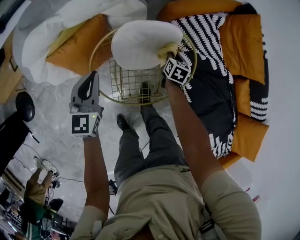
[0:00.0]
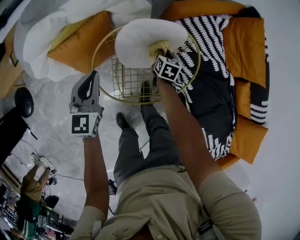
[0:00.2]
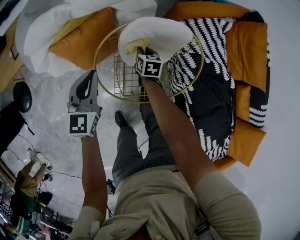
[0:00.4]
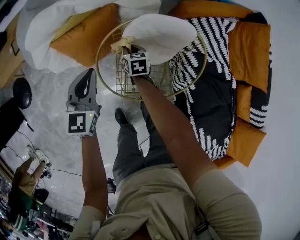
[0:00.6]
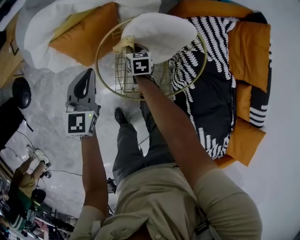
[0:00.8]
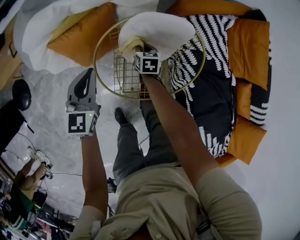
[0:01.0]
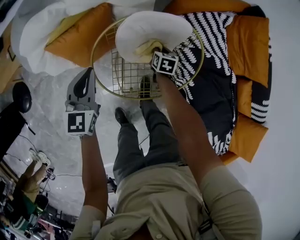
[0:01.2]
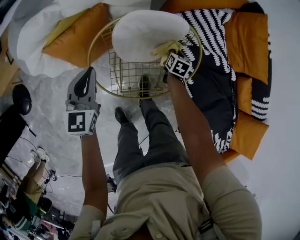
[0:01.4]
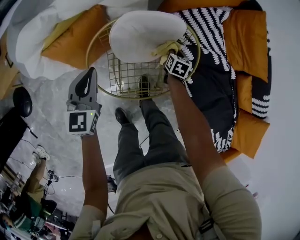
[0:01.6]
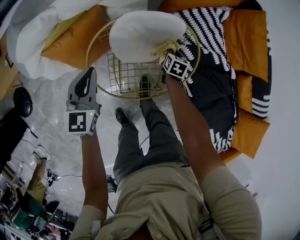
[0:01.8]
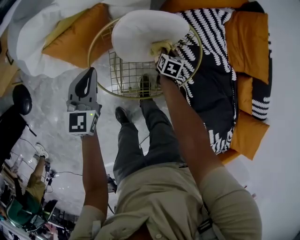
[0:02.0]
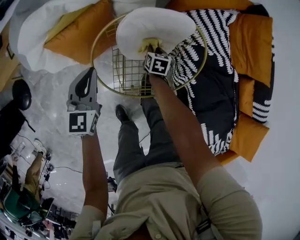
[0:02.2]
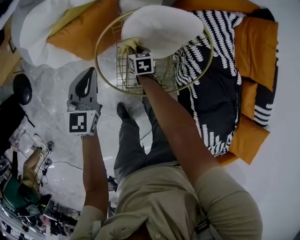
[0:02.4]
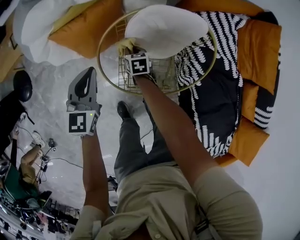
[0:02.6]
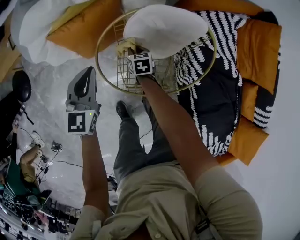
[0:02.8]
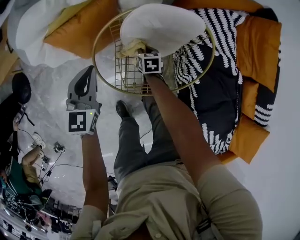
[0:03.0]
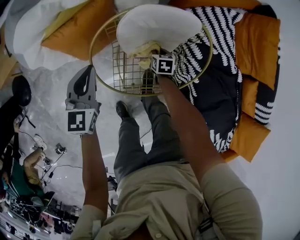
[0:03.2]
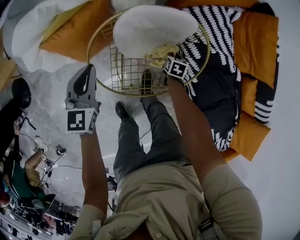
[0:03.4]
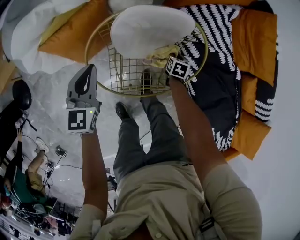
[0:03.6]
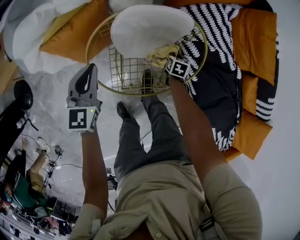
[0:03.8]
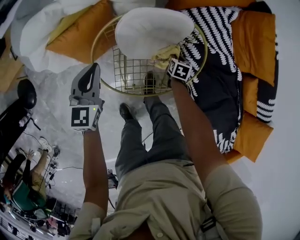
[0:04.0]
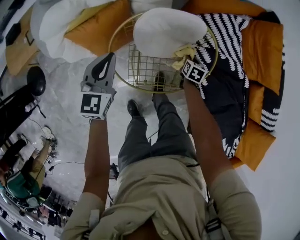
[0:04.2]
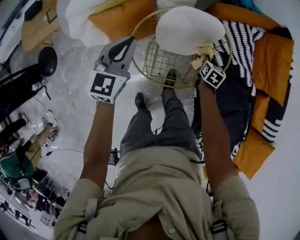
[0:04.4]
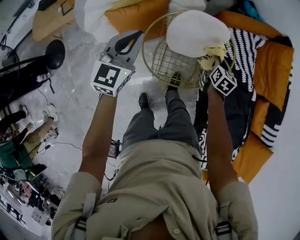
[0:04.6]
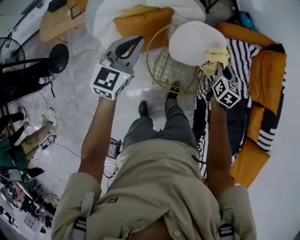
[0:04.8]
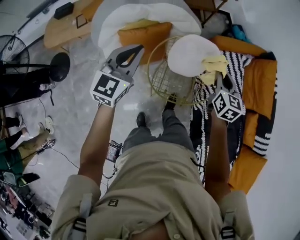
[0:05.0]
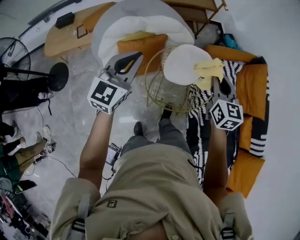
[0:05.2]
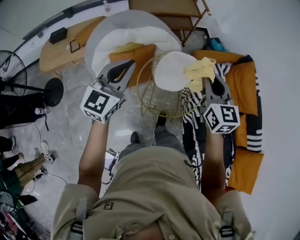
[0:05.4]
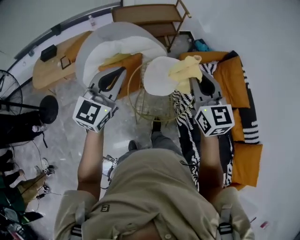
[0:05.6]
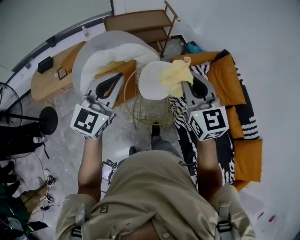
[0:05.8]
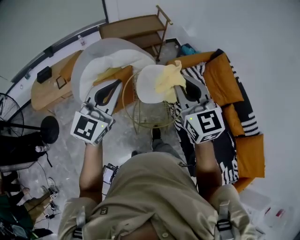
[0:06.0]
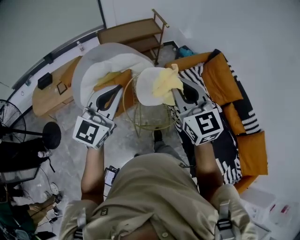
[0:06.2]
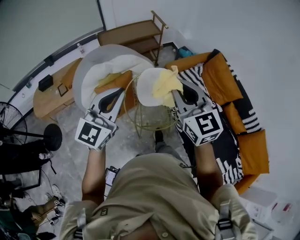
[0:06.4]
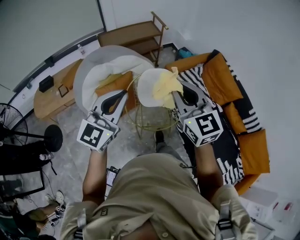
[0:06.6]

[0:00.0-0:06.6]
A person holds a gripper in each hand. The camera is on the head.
0:00.0 to 0:01.6: The right gripper travels to the left and back again, some 25 cm each way.
0:01.6 to 0:03.2: The right gripper rotates some 20 degrees.
0:03.2 to 0:05.0: The right gripper shifts about 50 cm upward, and tilts its fingers some 40 degrees upward, while the left gripper goes roughly 30 cm upward.
0:05.0 to 0:06.6: The left gripper shifts about 25 cm upward, backward and to the right, and turns by about 20 degrees. The right gripper heads upward and backward, covering roughly 35 cm, and rotates about 30 degrees.

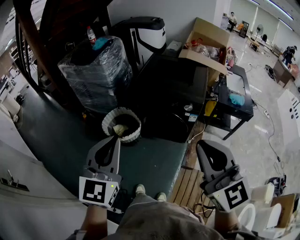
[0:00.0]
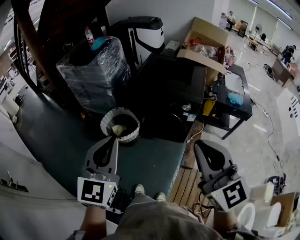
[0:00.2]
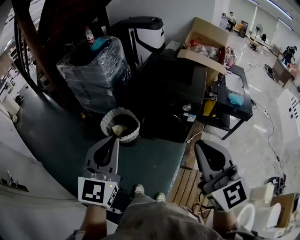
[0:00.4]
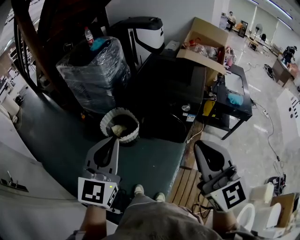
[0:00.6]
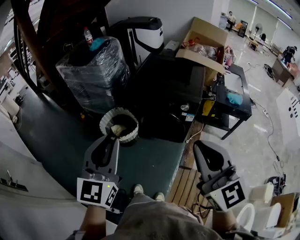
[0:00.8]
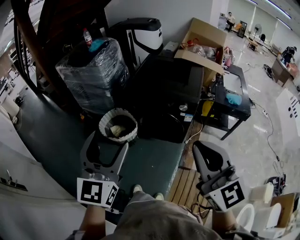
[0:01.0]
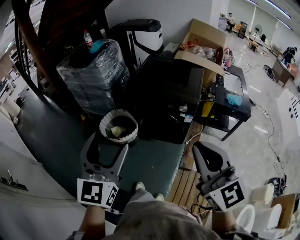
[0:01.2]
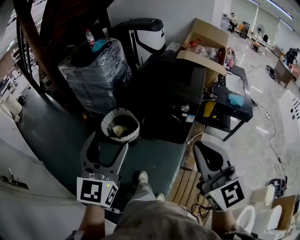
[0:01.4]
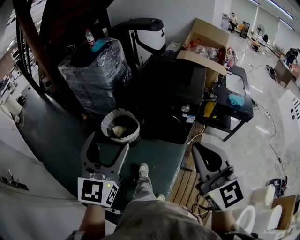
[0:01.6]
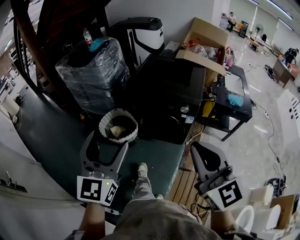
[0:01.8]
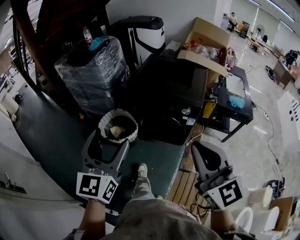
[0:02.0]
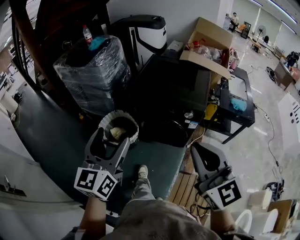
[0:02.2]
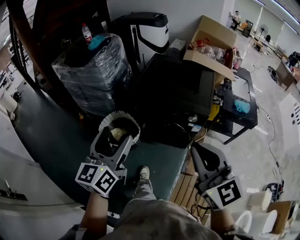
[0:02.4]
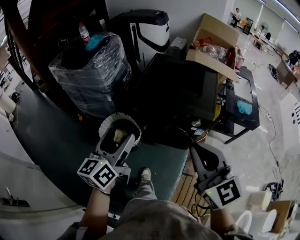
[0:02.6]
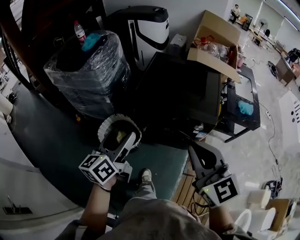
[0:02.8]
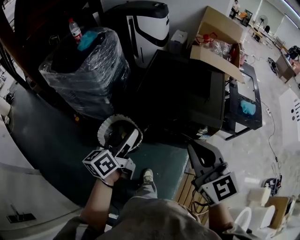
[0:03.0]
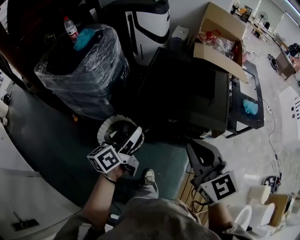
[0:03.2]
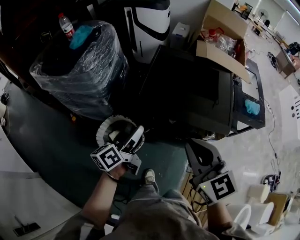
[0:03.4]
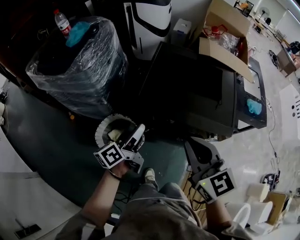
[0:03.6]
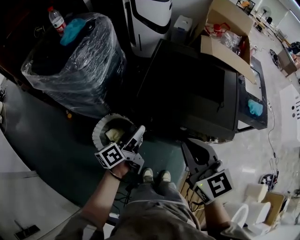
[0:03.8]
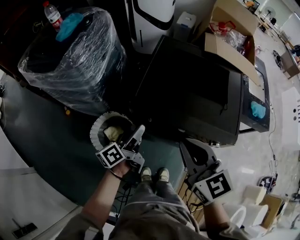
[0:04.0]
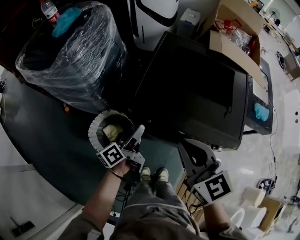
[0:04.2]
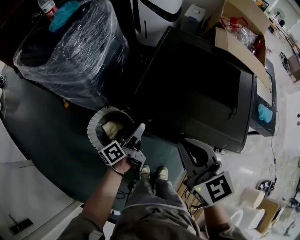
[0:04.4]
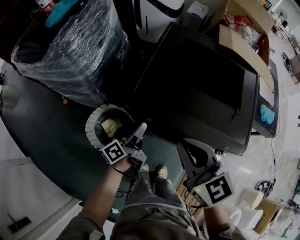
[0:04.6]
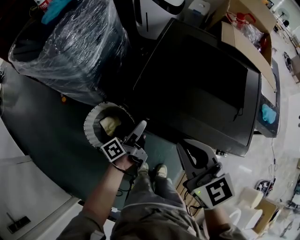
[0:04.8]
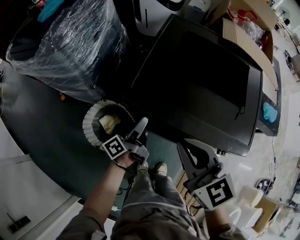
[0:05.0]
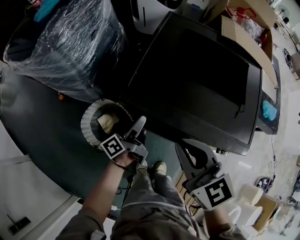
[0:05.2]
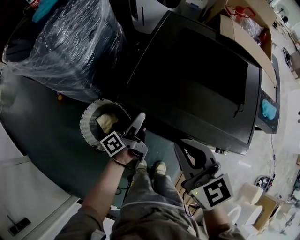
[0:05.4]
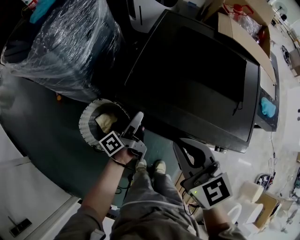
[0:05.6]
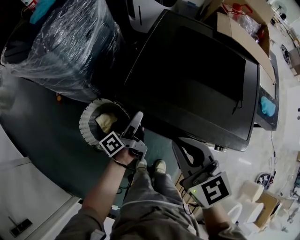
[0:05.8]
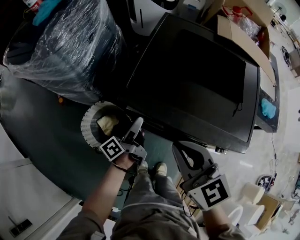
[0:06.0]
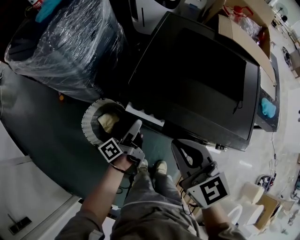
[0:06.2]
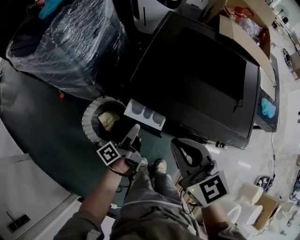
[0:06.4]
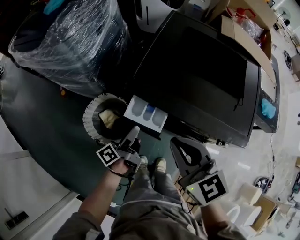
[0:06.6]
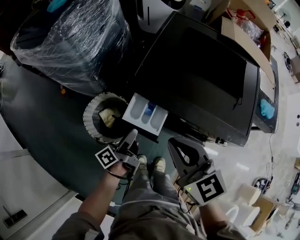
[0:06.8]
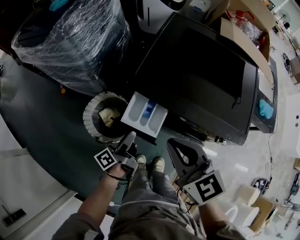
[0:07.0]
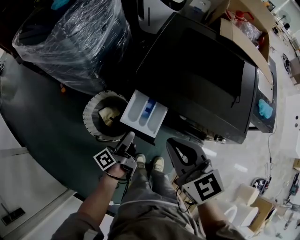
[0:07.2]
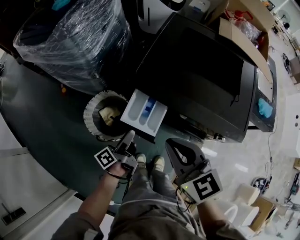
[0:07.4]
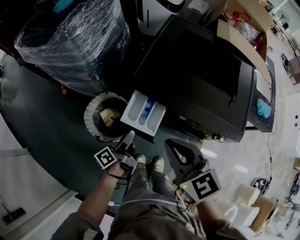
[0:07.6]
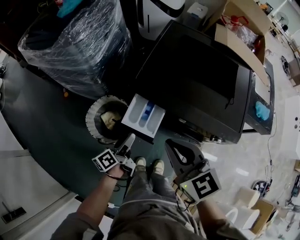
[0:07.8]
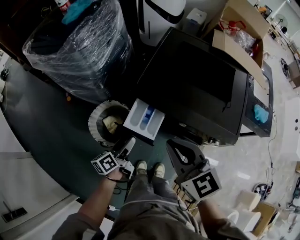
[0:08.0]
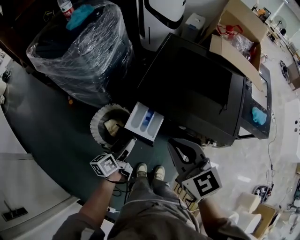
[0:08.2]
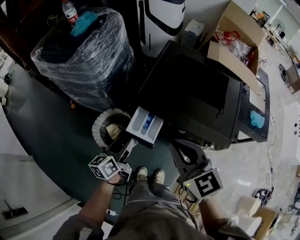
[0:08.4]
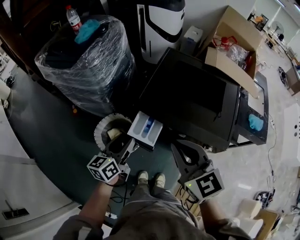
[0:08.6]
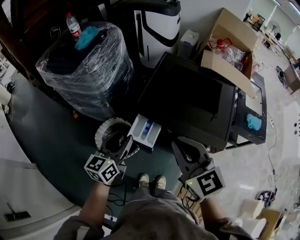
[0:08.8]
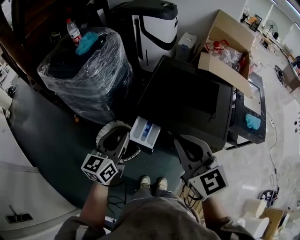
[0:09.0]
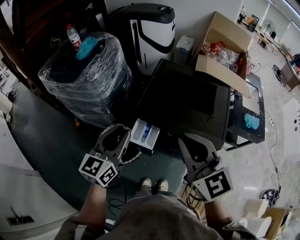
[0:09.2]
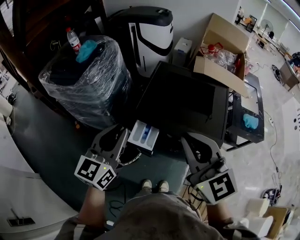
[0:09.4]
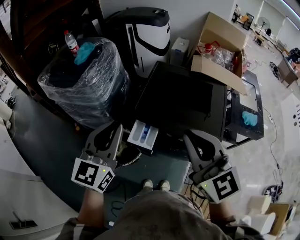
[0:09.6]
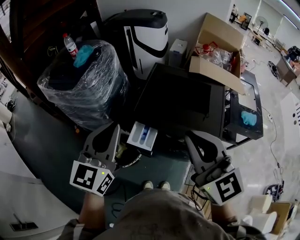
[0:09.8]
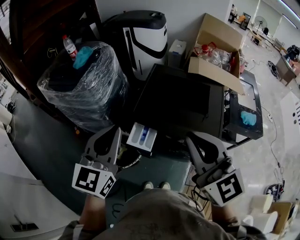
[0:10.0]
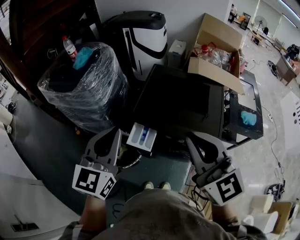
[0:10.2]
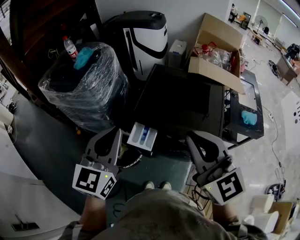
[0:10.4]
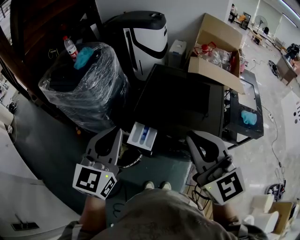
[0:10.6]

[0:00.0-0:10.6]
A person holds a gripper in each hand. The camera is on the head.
0:00.0 to 0:01.6: The left gripper opens.
0:01.6 to 0:03.0: The right gripper is displaced forward by approximately 30 cm; the left gripper moves forward and downward, some 35 cm, and rolls counterclockwise, seen from behind, by approximately 50 degrees.
0:03.0 to 0:04.6: The right gripper moves forward and downward, roughly 25 cm. The left gripper is displaced downward and forward by roughly 35 cm, and turns by approximately 30 degrees.
0:04.6 to 0:06.0: There are only small adjustments of the grippers.
0:06.0 to 0:07.6: The right gripper shifts about 5 cm backward. Meanwhile the left gripper heads backward and to the left, covering about 15 cm.
0:07.6 to 0:09.0: The left gripper shifts about 30 cm upward, rolls clockwise, seen from behind, by approximately 70 degrees, and closes its fingers. The right gripper shifts about 20 cm upward.
0:09.0 to 0:10.6: The two grippers go roughly 10 cm upward. The left gripper swivels some 20 degrees.

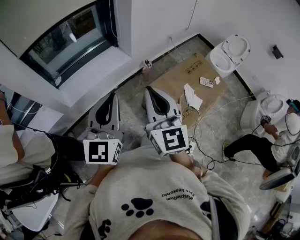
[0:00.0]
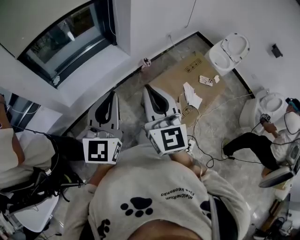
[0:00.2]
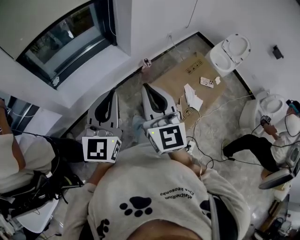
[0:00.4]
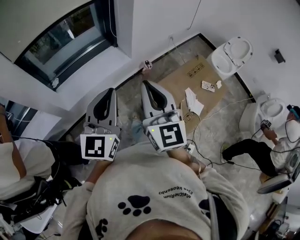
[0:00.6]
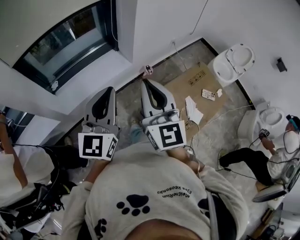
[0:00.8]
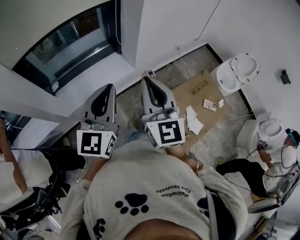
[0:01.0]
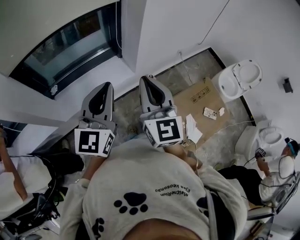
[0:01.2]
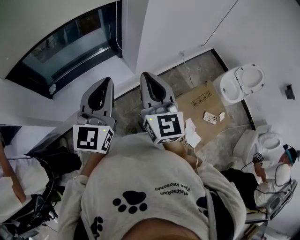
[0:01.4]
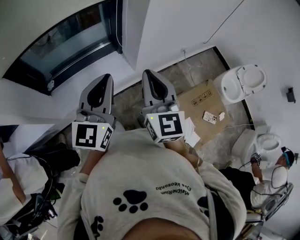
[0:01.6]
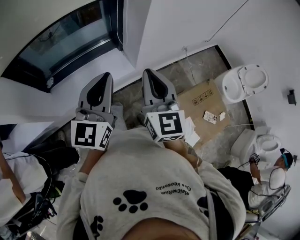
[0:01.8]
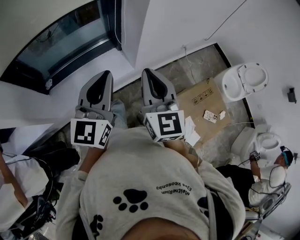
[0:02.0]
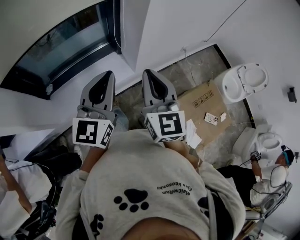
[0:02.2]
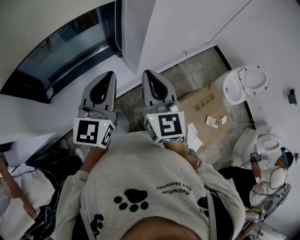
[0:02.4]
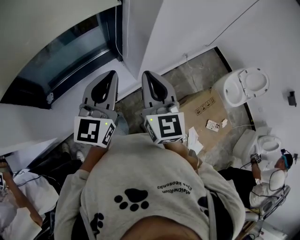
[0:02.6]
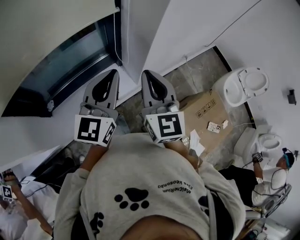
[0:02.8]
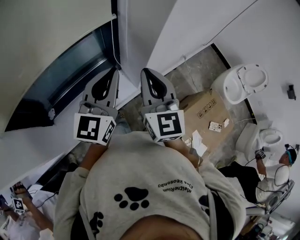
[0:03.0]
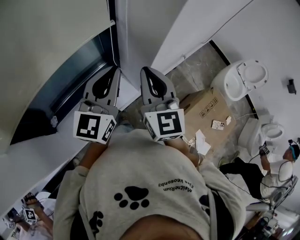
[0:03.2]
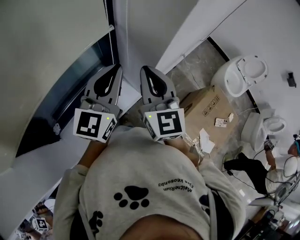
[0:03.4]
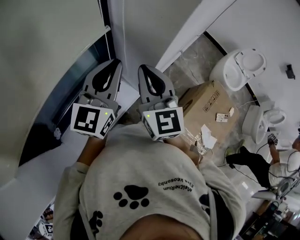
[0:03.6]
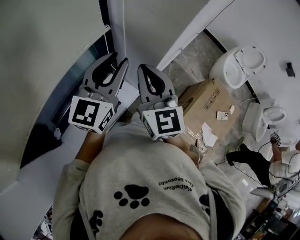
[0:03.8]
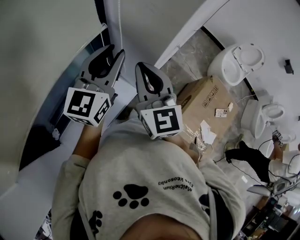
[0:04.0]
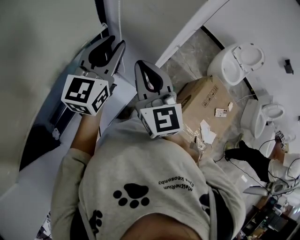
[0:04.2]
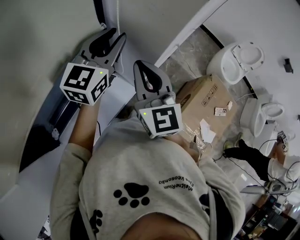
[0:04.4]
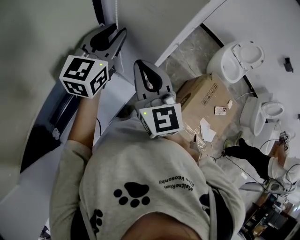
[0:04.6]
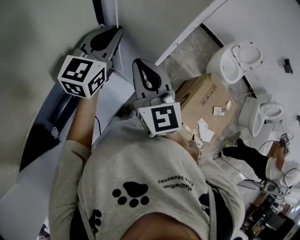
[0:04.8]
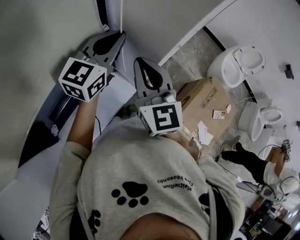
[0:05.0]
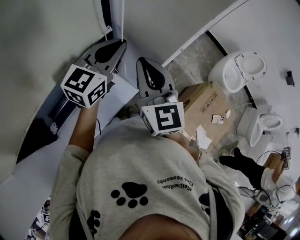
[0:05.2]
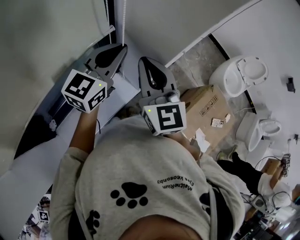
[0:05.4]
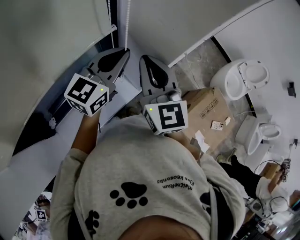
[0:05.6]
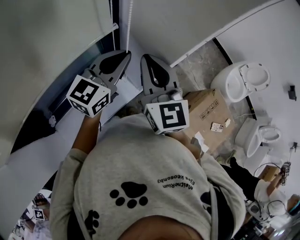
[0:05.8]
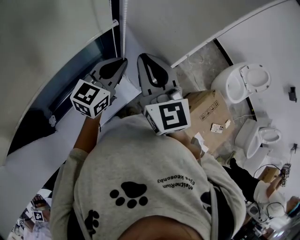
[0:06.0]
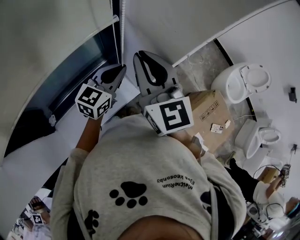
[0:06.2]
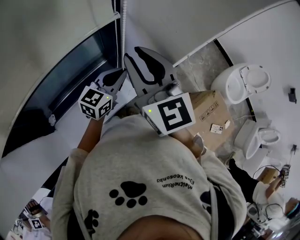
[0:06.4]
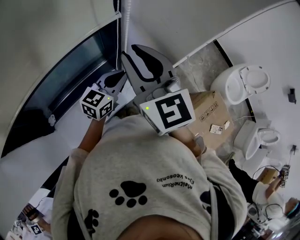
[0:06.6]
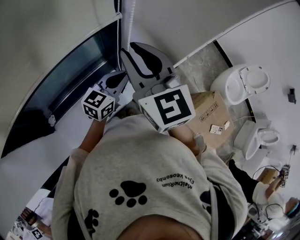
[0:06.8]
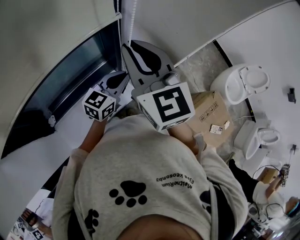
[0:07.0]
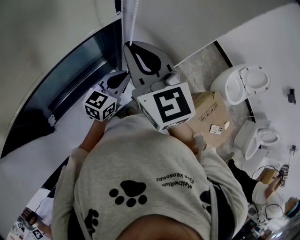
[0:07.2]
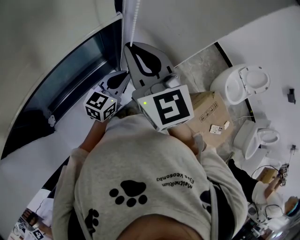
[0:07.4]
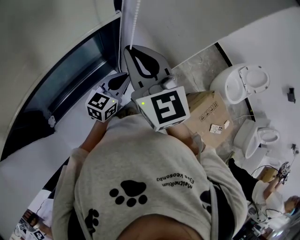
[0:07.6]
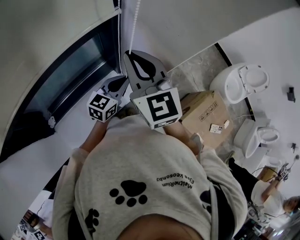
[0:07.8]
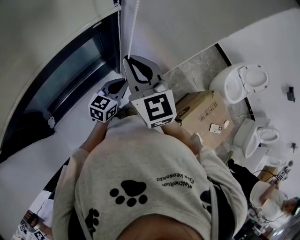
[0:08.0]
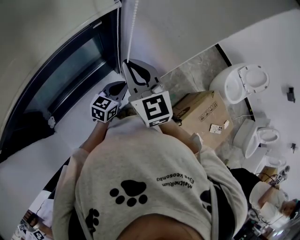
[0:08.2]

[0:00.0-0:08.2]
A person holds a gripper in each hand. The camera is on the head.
0:00.0 to 0:01.6: Both grippers travel together forward, approximately 35 cm.
0:01.6 to 0:03.2: The grippers both shift forward by about 25 cm.
0:03.2 to 0:05.0: The left gripper shifts about 15 cm forward, rotates about 20 degrees, and opens, then closes once more. The right gripper shifts by some 5 cm.
0:05.0 to 0:06.6: The right gripper changes place by roughly 5 cm, and rotates about 20 degrees. The left gripper shifts some 15 cm downward.
0:06.6 to 0:08.2: The two grippers go some 10 cm downward.
